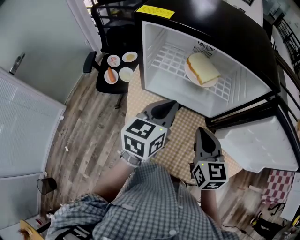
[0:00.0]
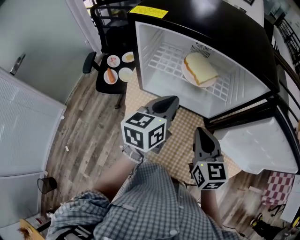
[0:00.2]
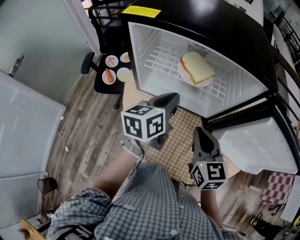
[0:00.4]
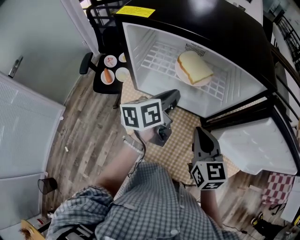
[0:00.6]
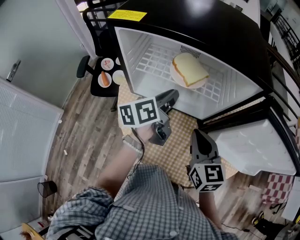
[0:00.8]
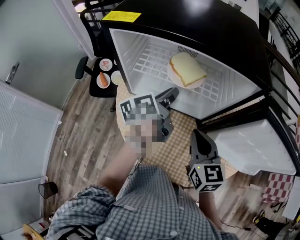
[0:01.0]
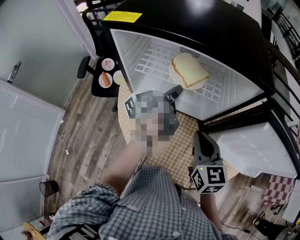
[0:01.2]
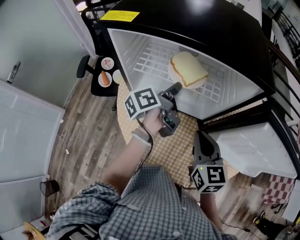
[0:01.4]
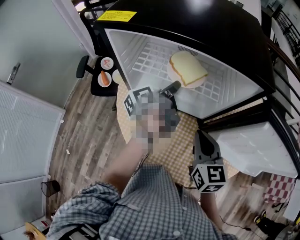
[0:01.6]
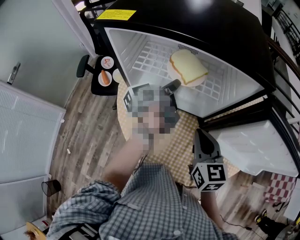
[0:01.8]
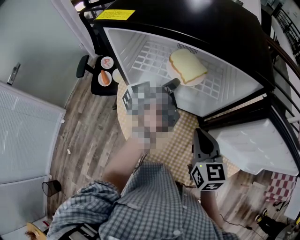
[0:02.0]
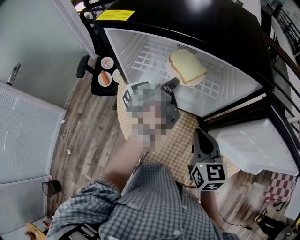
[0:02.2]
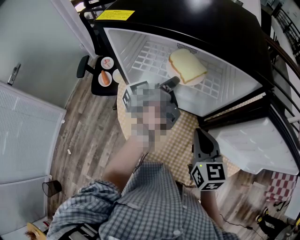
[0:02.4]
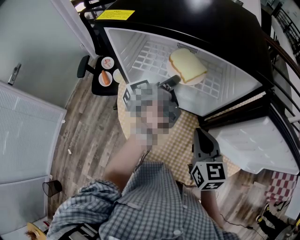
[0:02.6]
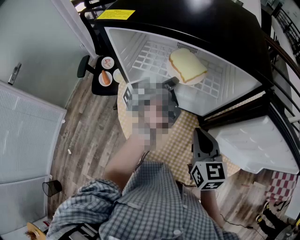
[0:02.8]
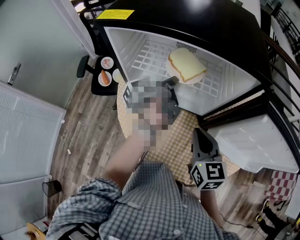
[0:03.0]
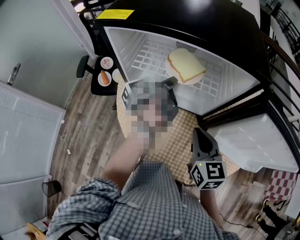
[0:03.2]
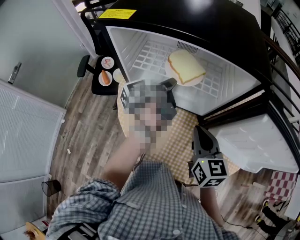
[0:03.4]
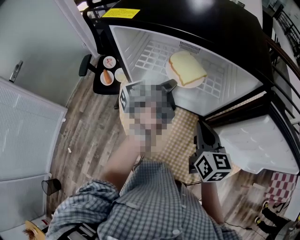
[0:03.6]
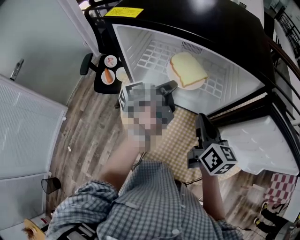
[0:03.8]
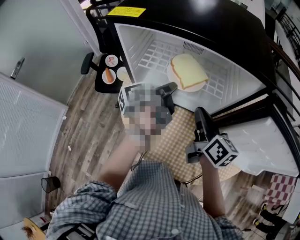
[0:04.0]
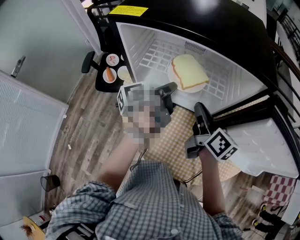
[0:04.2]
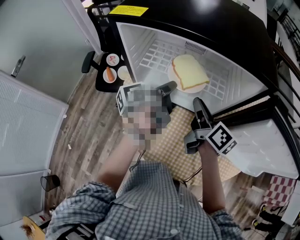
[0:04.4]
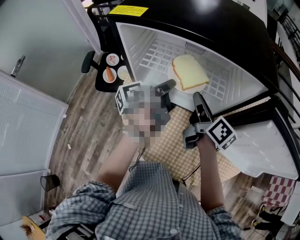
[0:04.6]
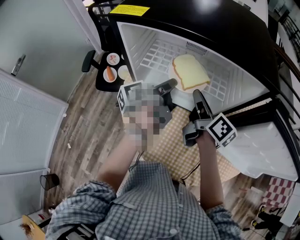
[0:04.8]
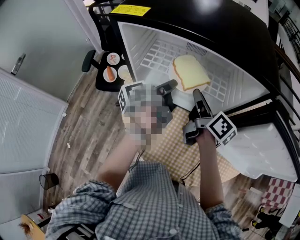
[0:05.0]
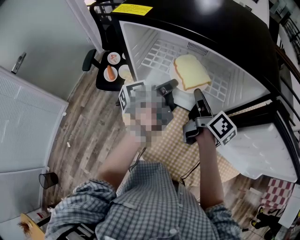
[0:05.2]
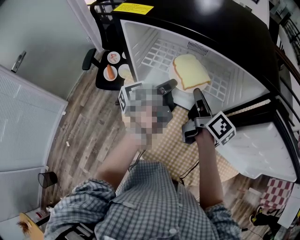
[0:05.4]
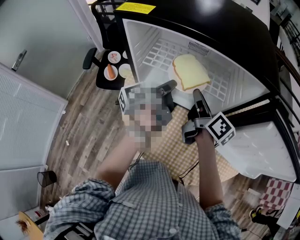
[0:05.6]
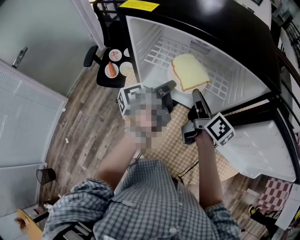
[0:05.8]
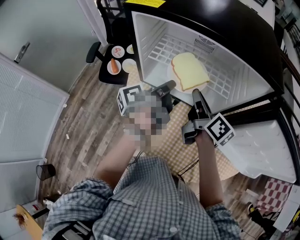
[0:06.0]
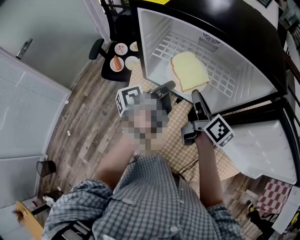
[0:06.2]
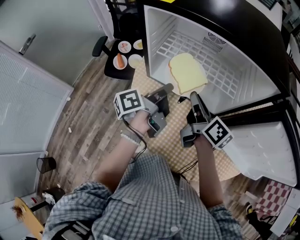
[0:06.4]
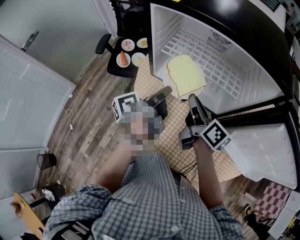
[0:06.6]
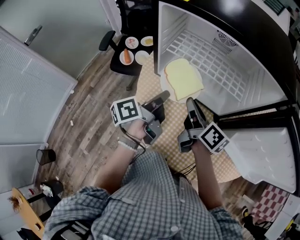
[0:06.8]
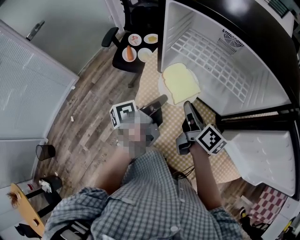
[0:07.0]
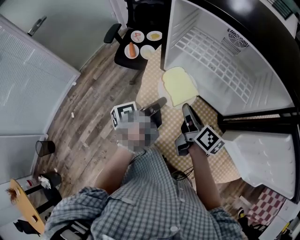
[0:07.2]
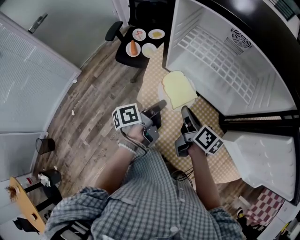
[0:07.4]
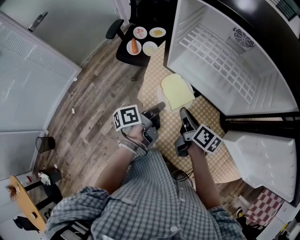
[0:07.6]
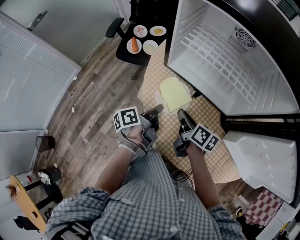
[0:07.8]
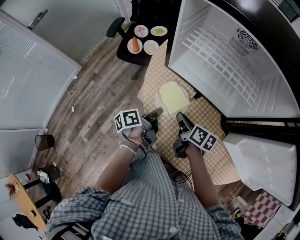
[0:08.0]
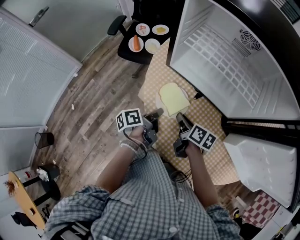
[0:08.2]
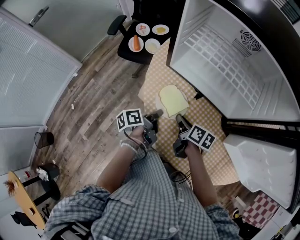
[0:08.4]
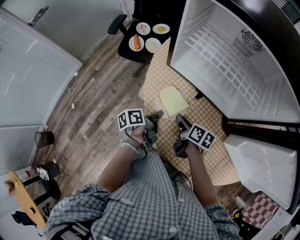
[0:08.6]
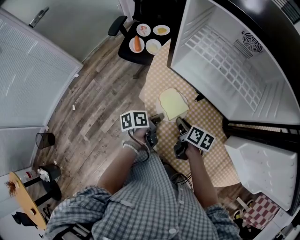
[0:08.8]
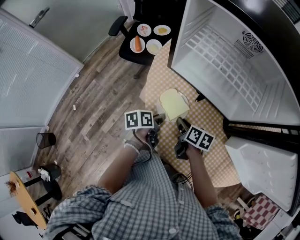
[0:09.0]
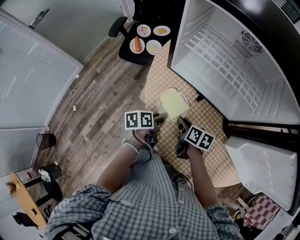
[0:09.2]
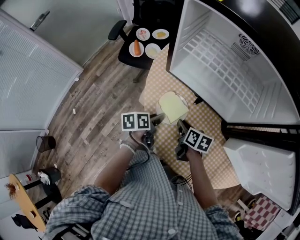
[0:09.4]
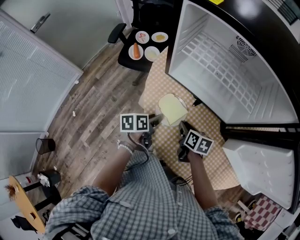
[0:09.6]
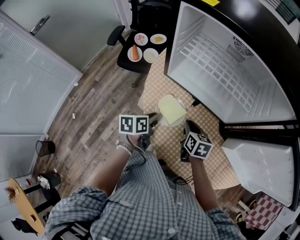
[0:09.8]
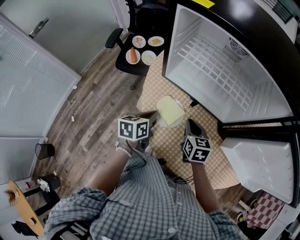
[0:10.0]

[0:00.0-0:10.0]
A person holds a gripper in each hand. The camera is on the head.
0.0 to 1.4 s: The right gripper shifts by approximately 5 cm, while the left gripper travels forward and downward by some 15 cm, and twists roughly 60 degrees counterclockwise, seen from behind.
1.4 to 2.8 s: There are only small adjustments of the grippers.
2.8 to 4.2 s: The right gripper goes some 10 cm forward, and swivels roughly 40 degrees.
4.2 to 5.8 s: The grippers move only a little.
5.8 to 7.2 s: The left gripper heads backward, to the left and downward, covering some 15 cm. The right gripper travels to the left, downward and backward by some 15 cm.
7.2 to 8.6 s: The grippers both shift downward by about 15 cm. The left gripper changes its angle by about 20 degrees, while the right gripper turns by about 20 degrees.
8.6 to 10.0 s: Both grippers move upward, some 5 cm. The left gripper rotates around the line of its fingers by about 40 degrees, clockwise from behind, and opens and closes again. The right gripper turns by approximately 40 degrees.

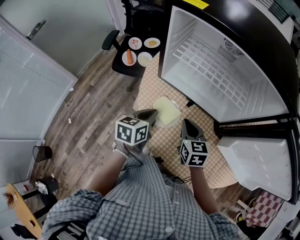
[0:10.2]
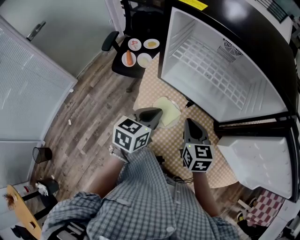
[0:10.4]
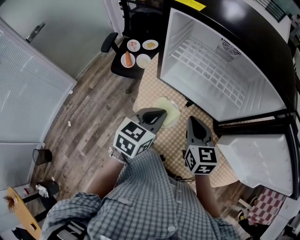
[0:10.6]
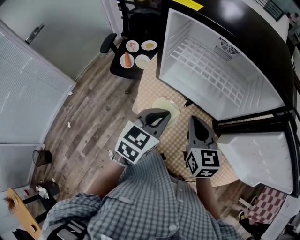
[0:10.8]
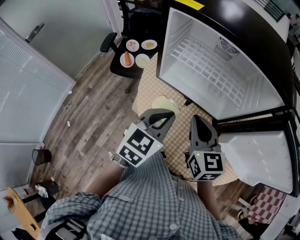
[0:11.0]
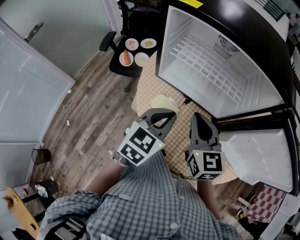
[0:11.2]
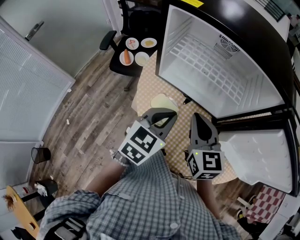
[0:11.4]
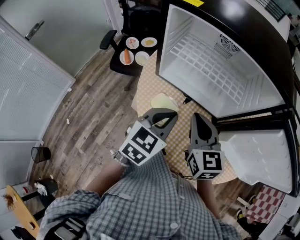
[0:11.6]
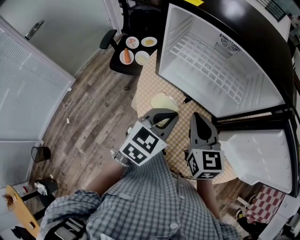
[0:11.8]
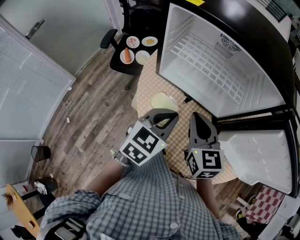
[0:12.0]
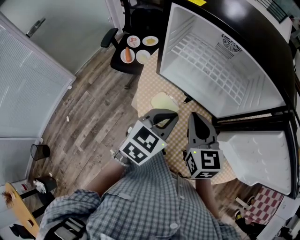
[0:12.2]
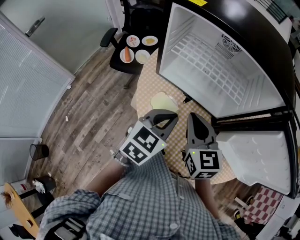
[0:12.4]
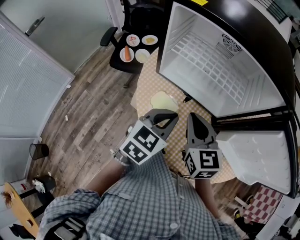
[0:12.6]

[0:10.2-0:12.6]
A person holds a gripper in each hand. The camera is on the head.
10.2 to 11.4 s: The left gripper moves upward and to the right, approximately 15 cm, and swivels approximately 30 degrees. The right gripper goes approximately 15 cm upward.
11.4 to 12.6 s: The grippers make only small movements.

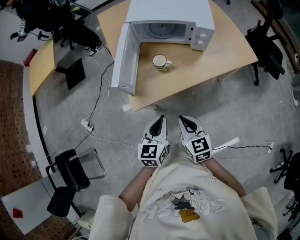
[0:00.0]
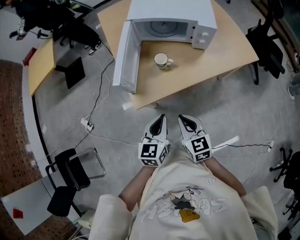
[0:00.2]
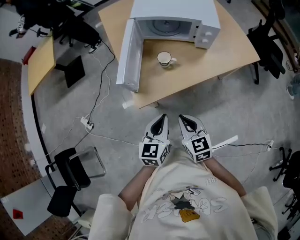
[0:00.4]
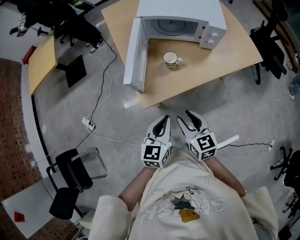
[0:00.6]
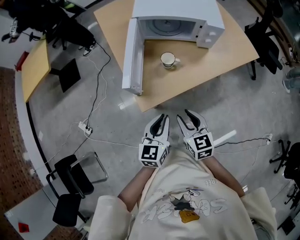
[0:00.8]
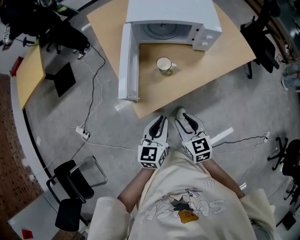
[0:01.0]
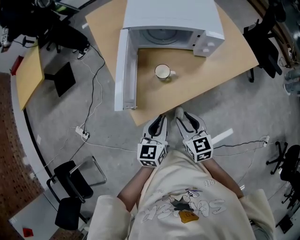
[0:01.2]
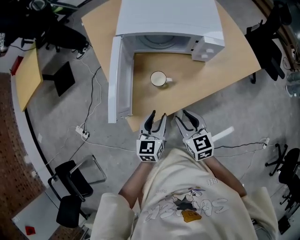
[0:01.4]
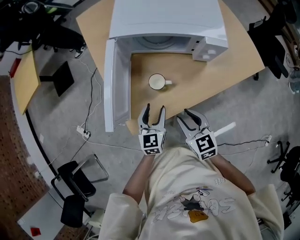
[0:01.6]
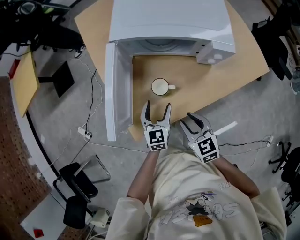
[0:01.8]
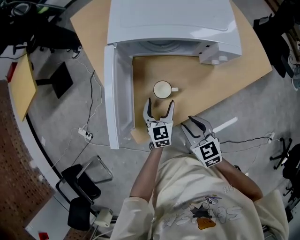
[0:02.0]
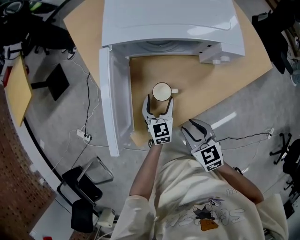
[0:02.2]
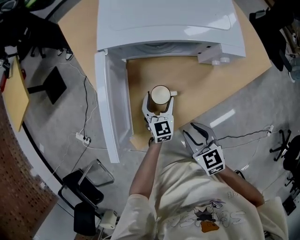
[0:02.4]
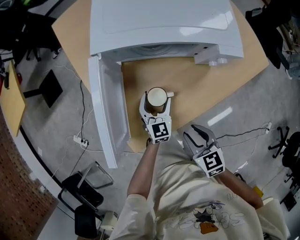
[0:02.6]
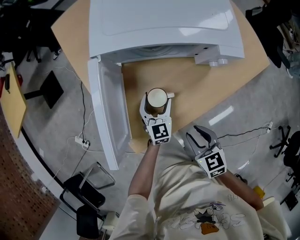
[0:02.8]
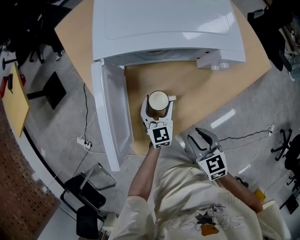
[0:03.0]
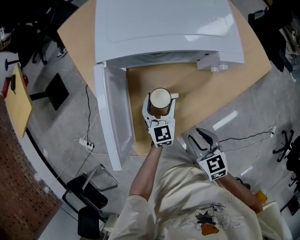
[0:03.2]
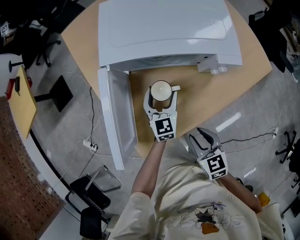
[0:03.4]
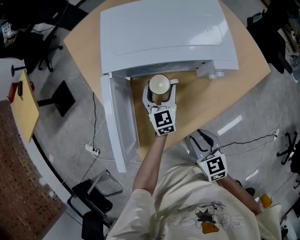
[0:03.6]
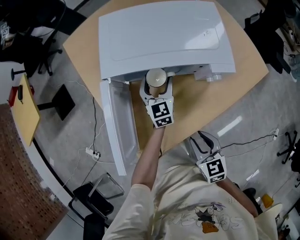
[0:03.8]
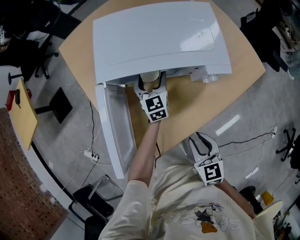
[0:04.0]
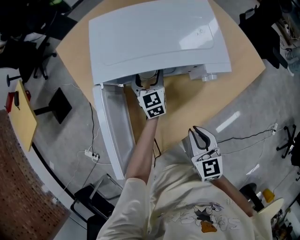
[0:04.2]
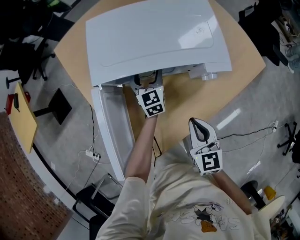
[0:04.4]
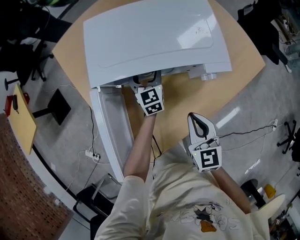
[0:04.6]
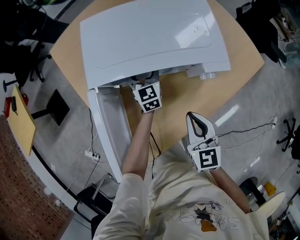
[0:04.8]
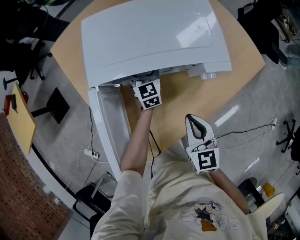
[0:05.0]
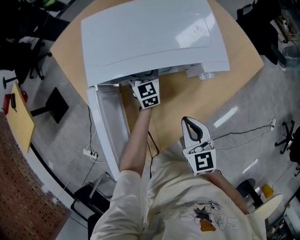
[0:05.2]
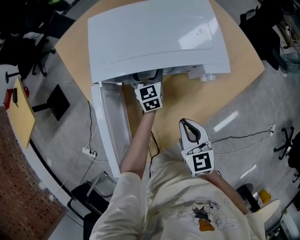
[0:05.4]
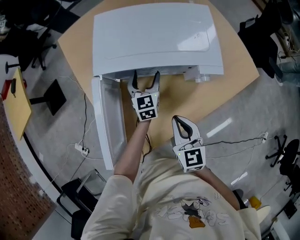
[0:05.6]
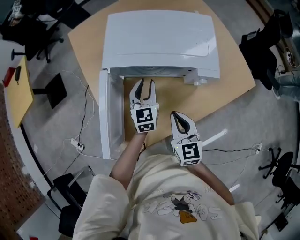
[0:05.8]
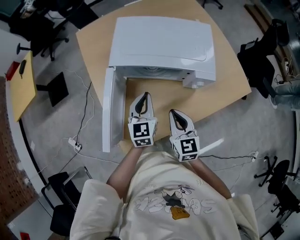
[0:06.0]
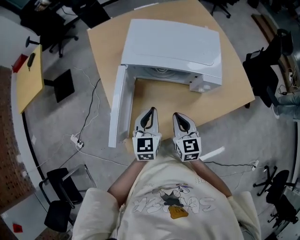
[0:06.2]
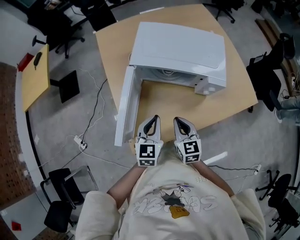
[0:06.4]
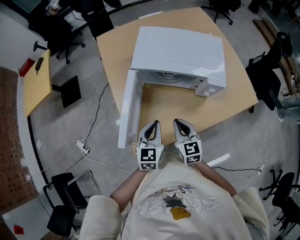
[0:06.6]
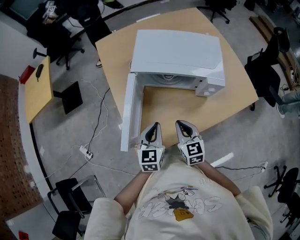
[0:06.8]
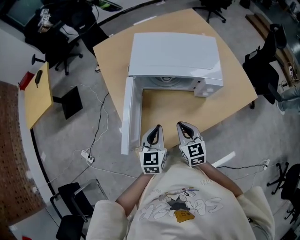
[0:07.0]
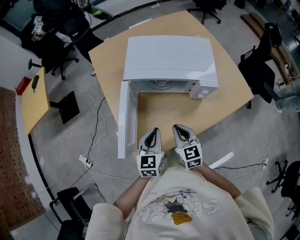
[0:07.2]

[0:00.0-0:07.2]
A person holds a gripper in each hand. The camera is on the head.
0.0 to 1.4 s: Both grippers move forward, approximately 15 cm. The left gripper opens, while the right gripper opens its fingers.
1.4 to 2.8 s: The right gripper is displaced downward by some 5 cm; the left gripper is displaced forward and downward by roughly 20 cm, and opens its fingers.
2.8 to 4.4 s: The right gripper shifts about 15 cm forward and upward, swivels approximately 30 degrees, and closes its fingers; the left gripper travels forward by roughly 20 cm.
4.4 to 5.8 s: The left gripper shifts approximately 10 cm backward and upward, and closes its fingers.
5.8 to 7.2 s: The left gripper shifts approximately 20 cm backward; the right gripper moves roughly 5 cm.

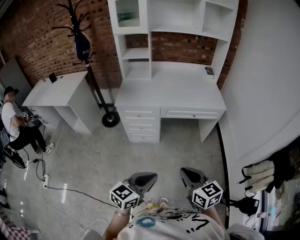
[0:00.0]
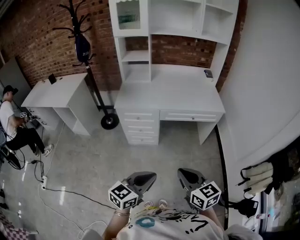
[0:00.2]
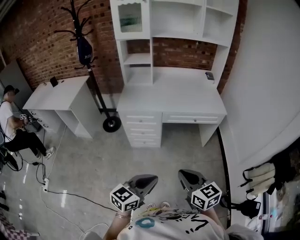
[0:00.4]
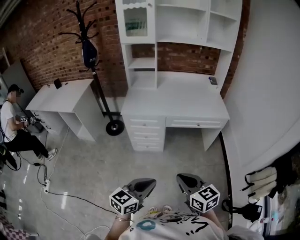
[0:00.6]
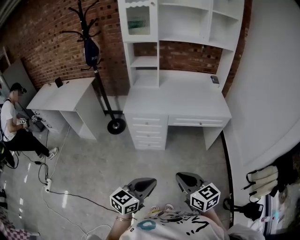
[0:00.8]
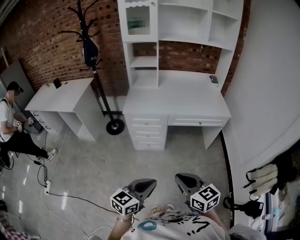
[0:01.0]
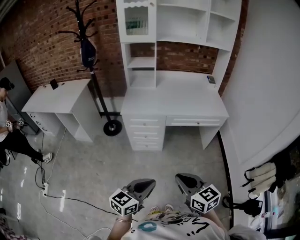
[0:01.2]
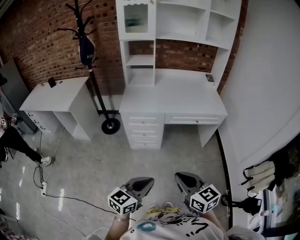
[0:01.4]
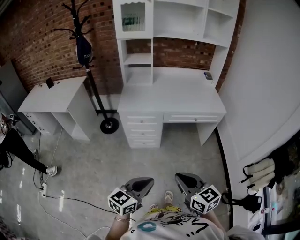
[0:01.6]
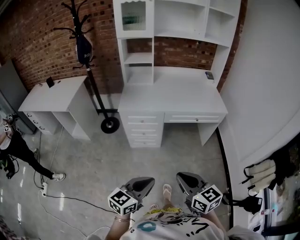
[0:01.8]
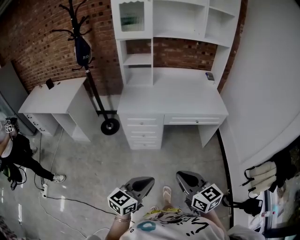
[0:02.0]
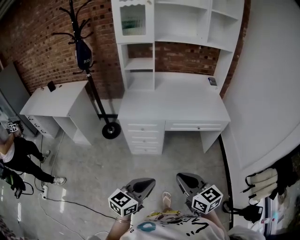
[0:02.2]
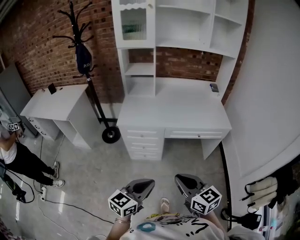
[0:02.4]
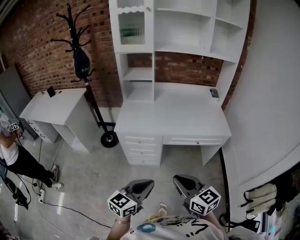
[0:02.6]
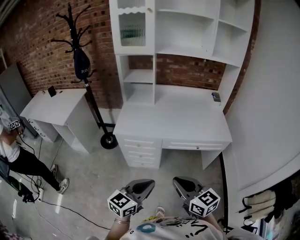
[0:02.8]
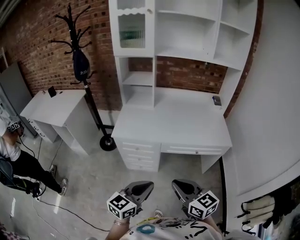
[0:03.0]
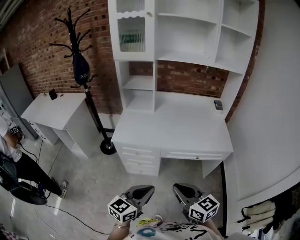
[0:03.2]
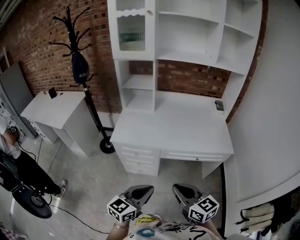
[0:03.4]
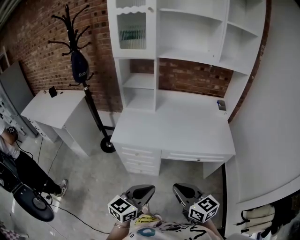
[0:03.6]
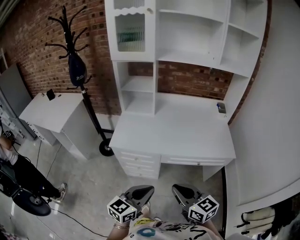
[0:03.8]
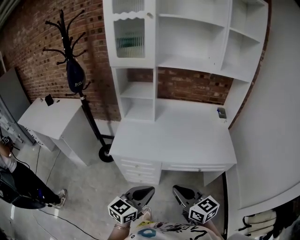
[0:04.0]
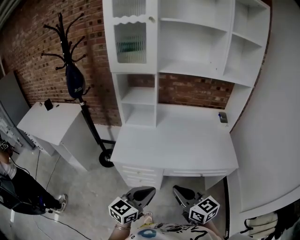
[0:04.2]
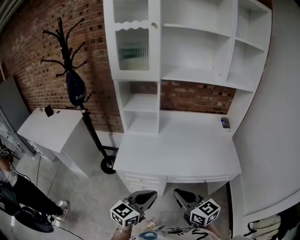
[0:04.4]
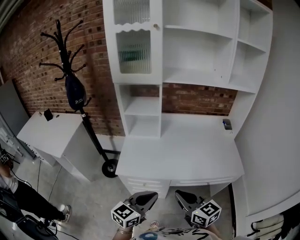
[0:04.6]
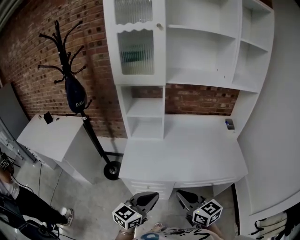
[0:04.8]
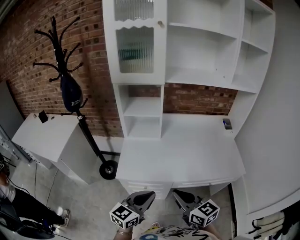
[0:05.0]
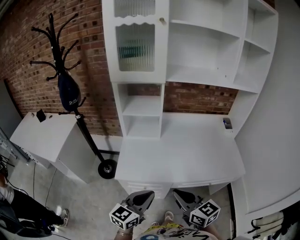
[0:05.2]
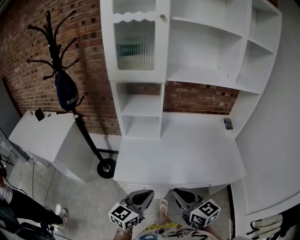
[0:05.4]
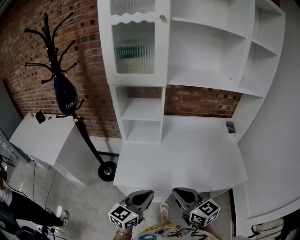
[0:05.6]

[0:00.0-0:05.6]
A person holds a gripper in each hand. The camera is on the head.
0.0 to 1.4 s: Both grippers move to the left, about 10 cm.
1.4 to 2.8 s: Both grippers travel together forward, about 20 cm.
2.8 to 4.2 s: Both grippers travel together forward, about 20 cm.
4.2 to 5.6 s: Both grippers move forward and to the left, approximately 15 cm.
